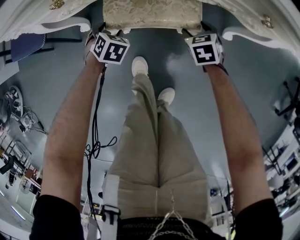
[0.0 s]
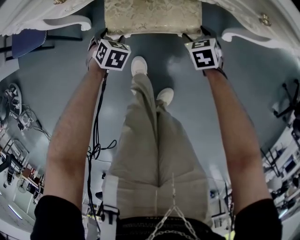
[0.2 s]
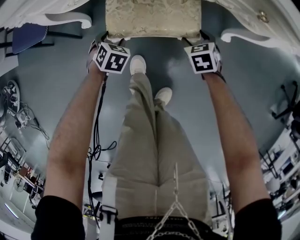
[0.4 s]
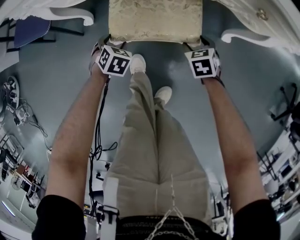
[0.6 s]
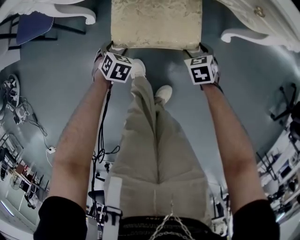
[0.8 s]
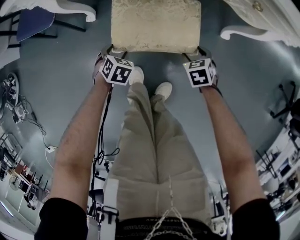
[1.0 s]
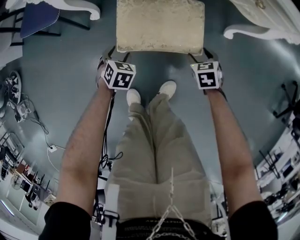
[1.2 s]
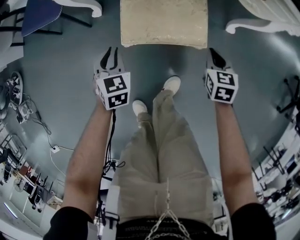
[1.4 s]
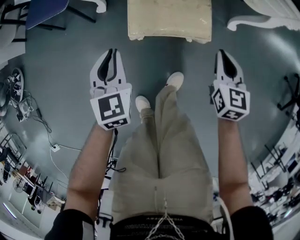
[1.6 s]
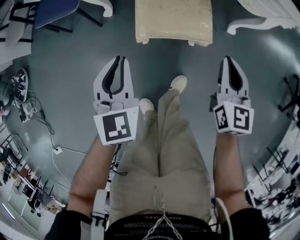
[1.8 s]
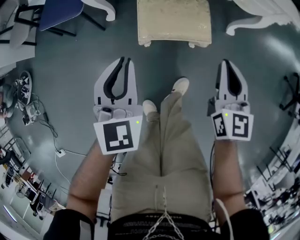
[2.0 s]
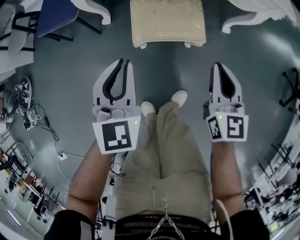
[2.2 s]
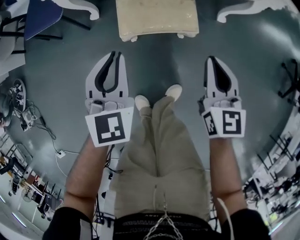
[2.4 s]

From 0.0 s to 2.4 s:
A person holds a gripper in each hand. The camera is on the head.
From 0.0 s to 1.2 s: Both grippers travel together backward, roughly 20 cm.
From 1.2 s to 2.4 s: The two grippers go roughly 30 cm upward. The left gripper tilts its fingers roughly 40 degrees upward, and closes its fingers, while the right gripper tilts its fingers about 40 degrees upward, and closes up.

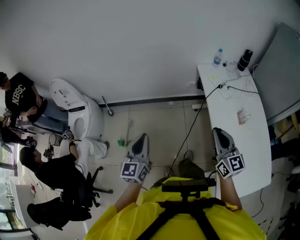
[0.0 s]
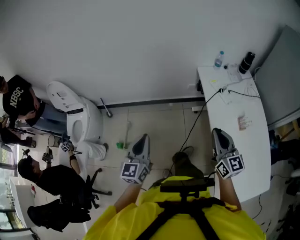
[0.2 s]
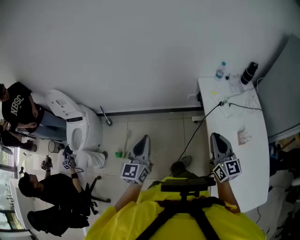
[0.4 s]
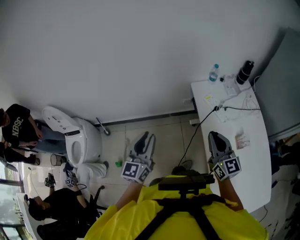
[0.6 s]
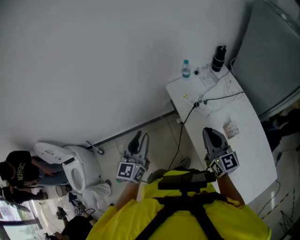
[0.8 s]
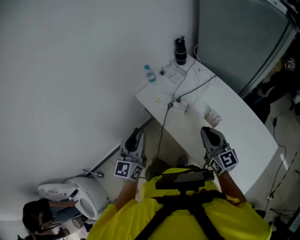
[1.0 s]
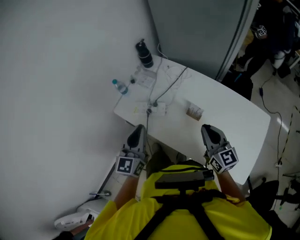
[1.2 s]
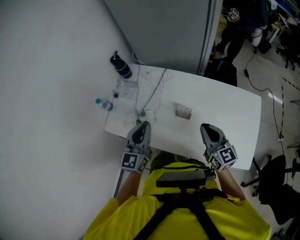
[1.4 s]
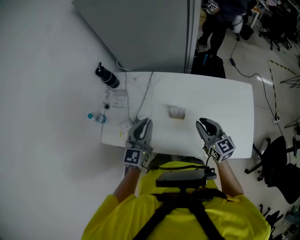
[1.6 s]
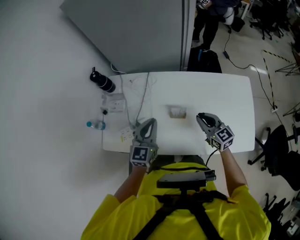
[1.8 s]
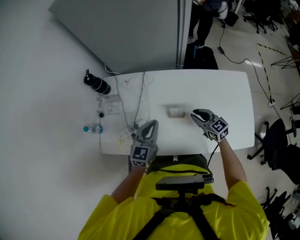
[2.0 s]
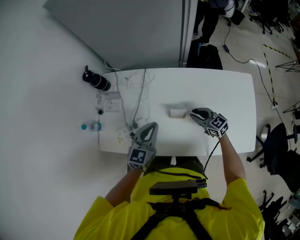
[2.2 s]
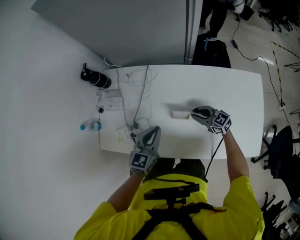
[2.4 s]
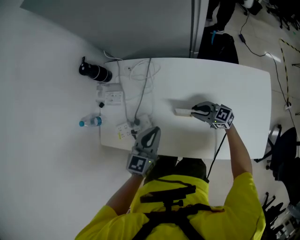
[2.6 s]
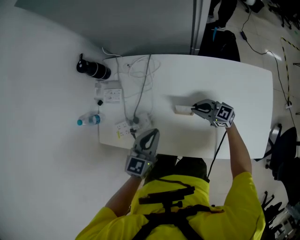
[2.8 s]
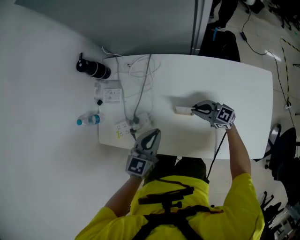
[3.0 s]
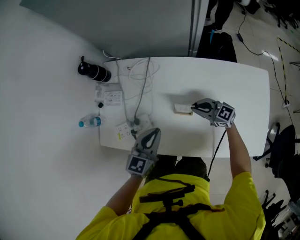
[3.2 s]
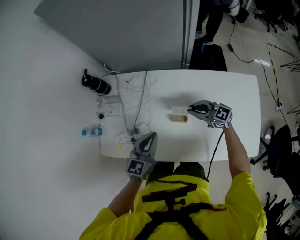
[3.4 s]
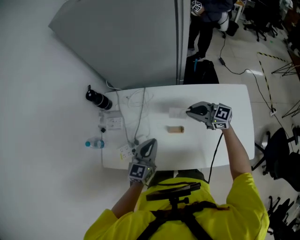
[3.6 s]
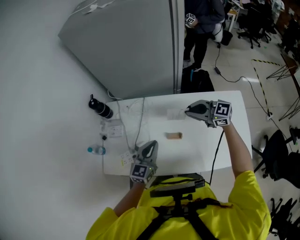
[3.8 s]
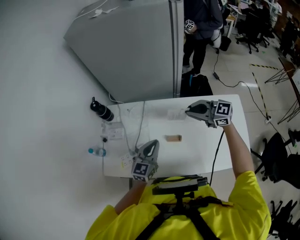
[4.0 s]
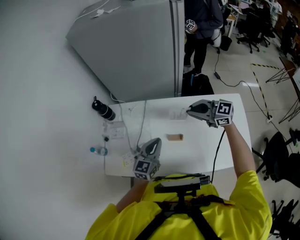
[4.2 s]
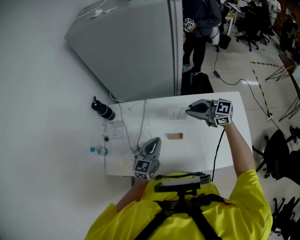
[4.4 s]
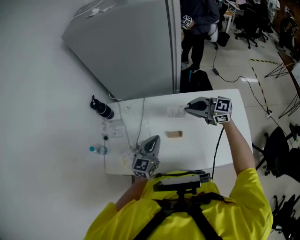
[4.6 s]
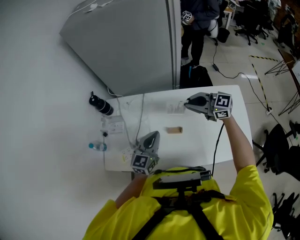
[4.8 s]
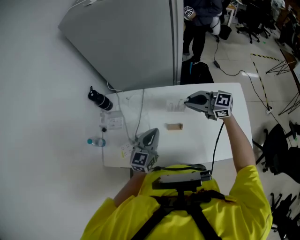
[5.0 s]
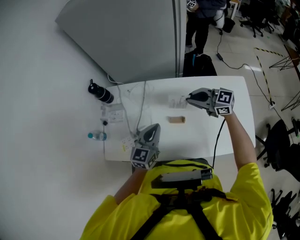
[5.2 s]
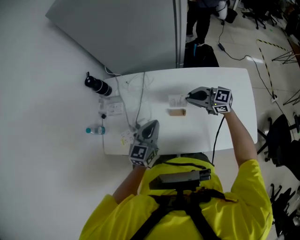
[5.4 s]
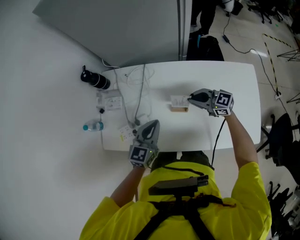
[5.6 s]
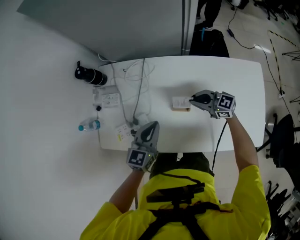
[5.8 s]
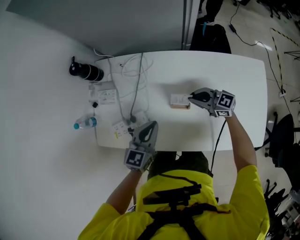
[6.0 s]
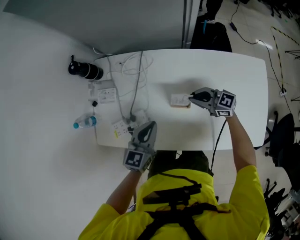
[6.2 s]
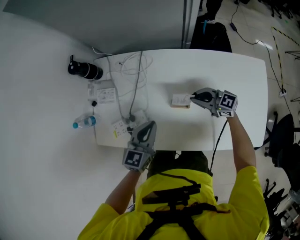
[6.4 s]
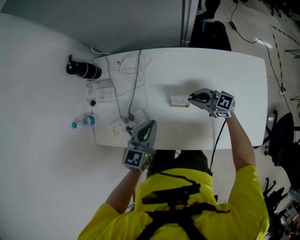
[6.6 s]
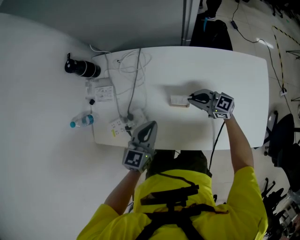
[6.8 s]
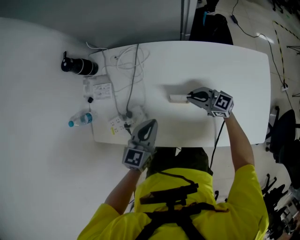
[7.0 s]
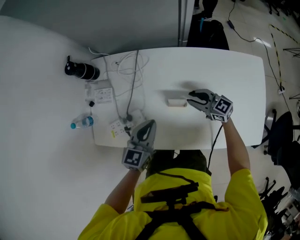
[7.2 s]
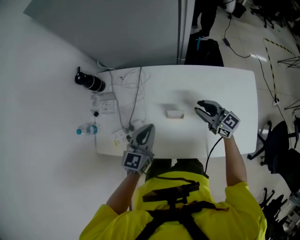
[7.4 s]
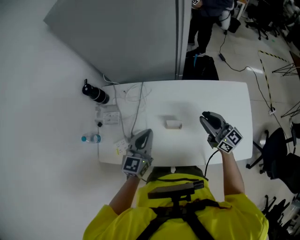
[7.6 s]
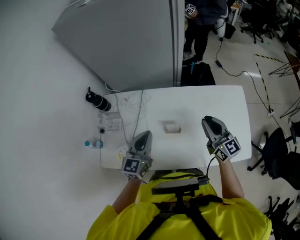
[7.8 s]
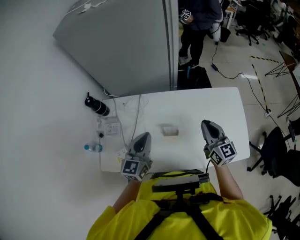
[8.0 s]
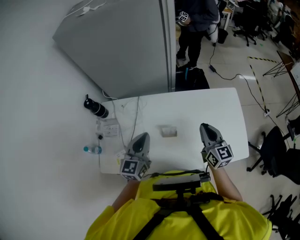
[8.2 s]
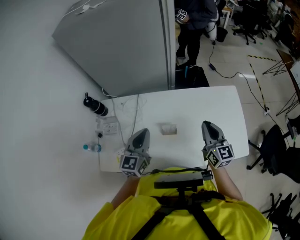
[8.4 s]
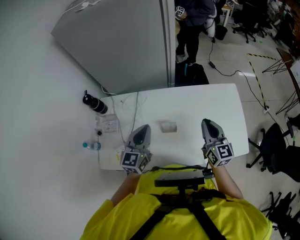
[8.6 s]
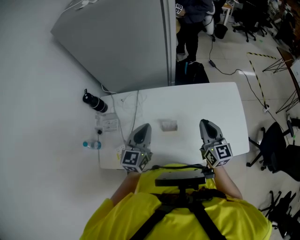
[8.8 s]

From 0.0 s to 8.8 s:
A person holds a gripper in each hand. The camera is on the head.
From 0.0 s to 1.4 s: The right gripper changes place by about 35 cm, and rotates approximately 60 degrees. Meanwhile the left gripper shifts by about 60 cm, swivels approximately 70 degrees, and opens, then closes again.
From 1.4 s to 3.0 s: The right gripper shifts roughly 25 cm downward and forward, and turns by some 40 degrees. Meanwhile the left gripper moves downward and forward, approximately 15 cm, and turns by some 30 degrees.
From 3.0 s to 4.4 s: The right gripper moves upward, roughly 30 cm. Meanwhile the left gripper travels upward by some 10 cm.
From 4.4 s to 5.8 s: The left gripper goes some 5 cm downward. Meanwhile the right gripper goes approximately 20 cm downward.
From 5.8 s to 7.4 s: The right gripper is displaced to the right and upward by roughly 10 cm, changes its angle by approximately 20 degrees, and opens up.
From 7.4 s to 8.8 s: The left gripper travels upward by roughly 10 cm. Meanwhile the right gripper heads upward and backward, covering roughly 15 cm, turns by roughly 40 degrees, and closes.

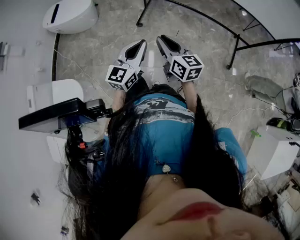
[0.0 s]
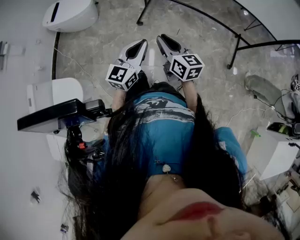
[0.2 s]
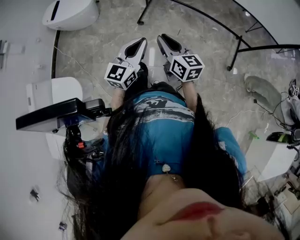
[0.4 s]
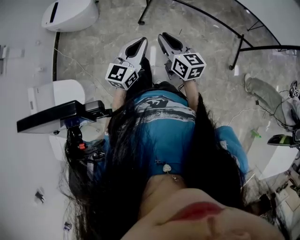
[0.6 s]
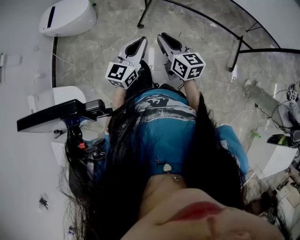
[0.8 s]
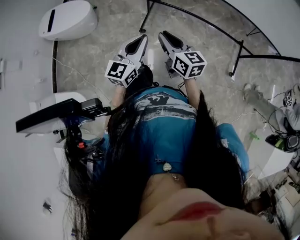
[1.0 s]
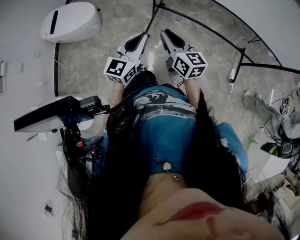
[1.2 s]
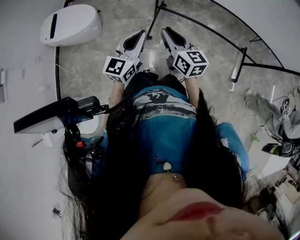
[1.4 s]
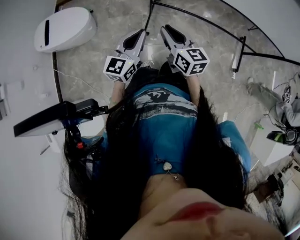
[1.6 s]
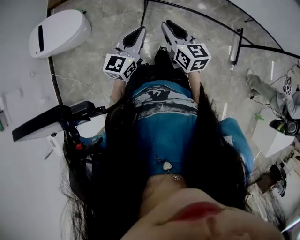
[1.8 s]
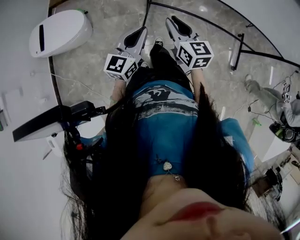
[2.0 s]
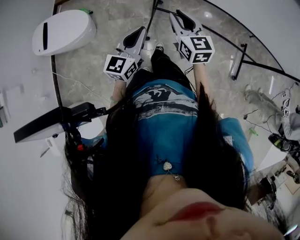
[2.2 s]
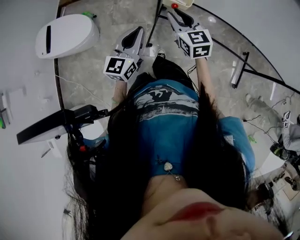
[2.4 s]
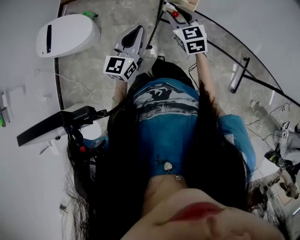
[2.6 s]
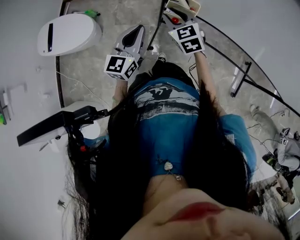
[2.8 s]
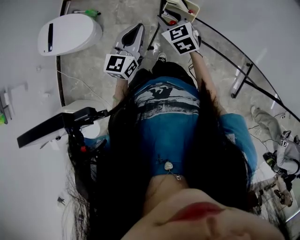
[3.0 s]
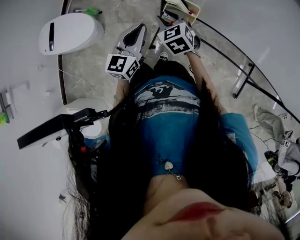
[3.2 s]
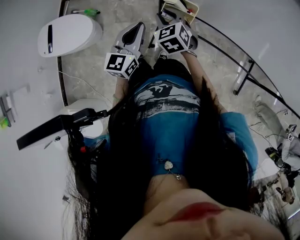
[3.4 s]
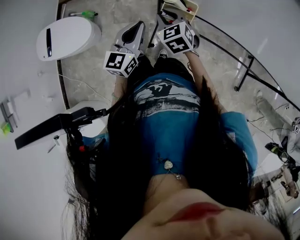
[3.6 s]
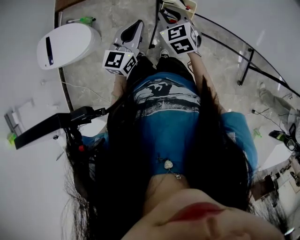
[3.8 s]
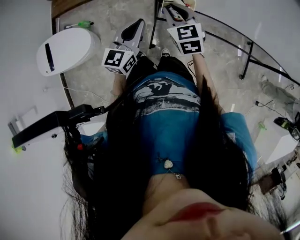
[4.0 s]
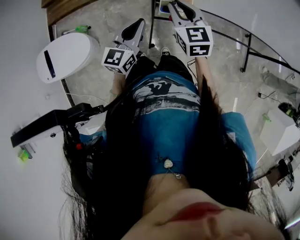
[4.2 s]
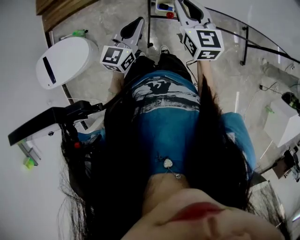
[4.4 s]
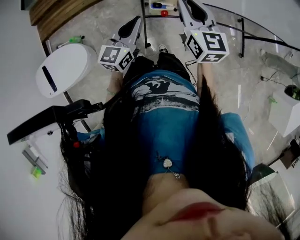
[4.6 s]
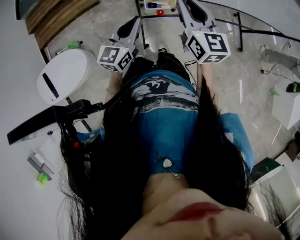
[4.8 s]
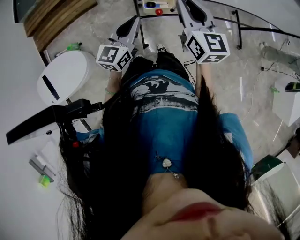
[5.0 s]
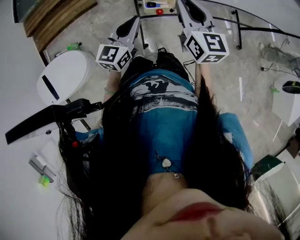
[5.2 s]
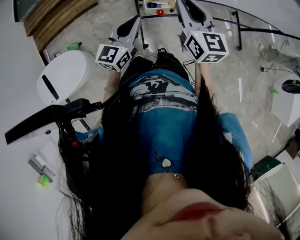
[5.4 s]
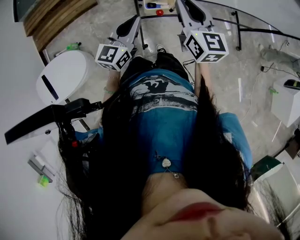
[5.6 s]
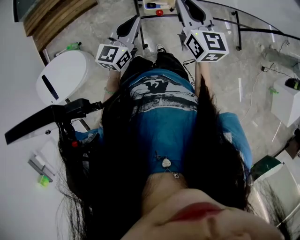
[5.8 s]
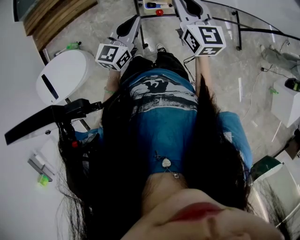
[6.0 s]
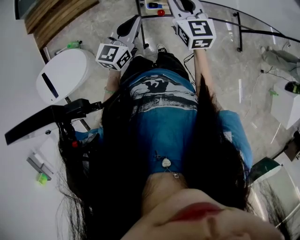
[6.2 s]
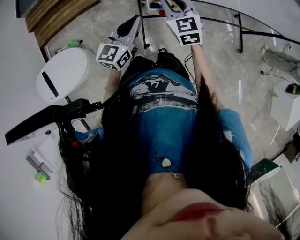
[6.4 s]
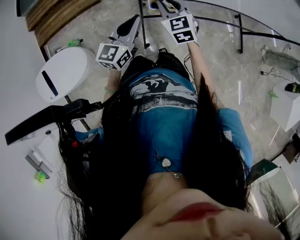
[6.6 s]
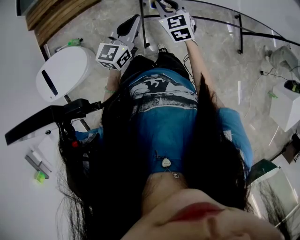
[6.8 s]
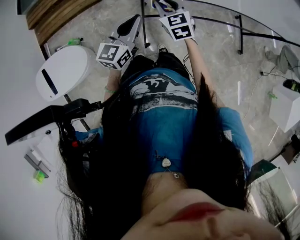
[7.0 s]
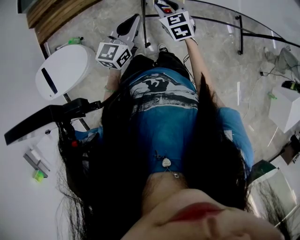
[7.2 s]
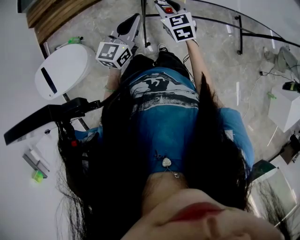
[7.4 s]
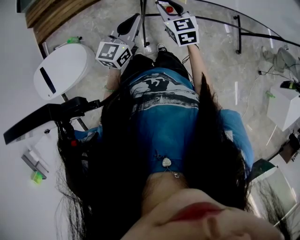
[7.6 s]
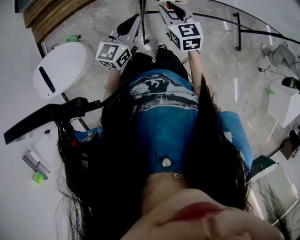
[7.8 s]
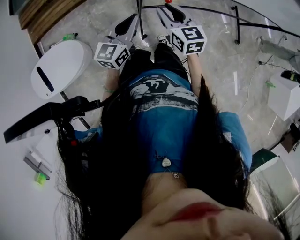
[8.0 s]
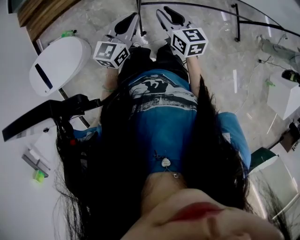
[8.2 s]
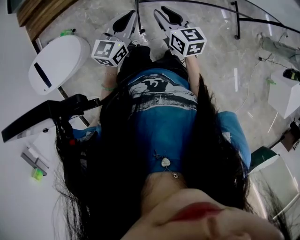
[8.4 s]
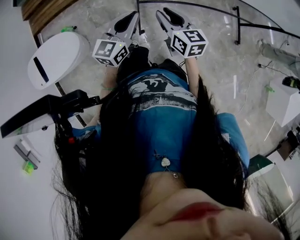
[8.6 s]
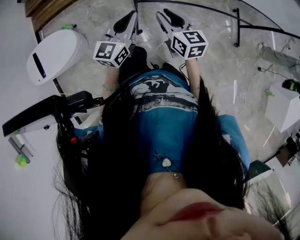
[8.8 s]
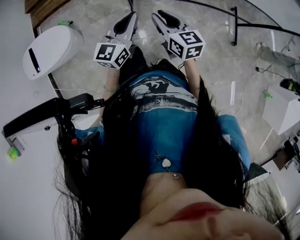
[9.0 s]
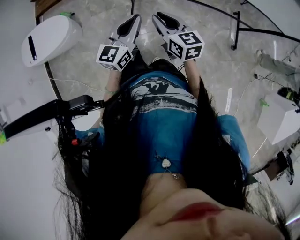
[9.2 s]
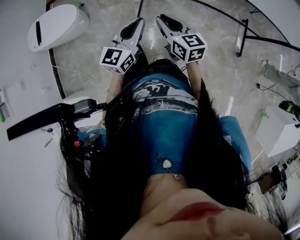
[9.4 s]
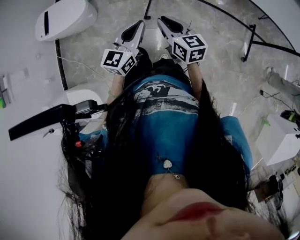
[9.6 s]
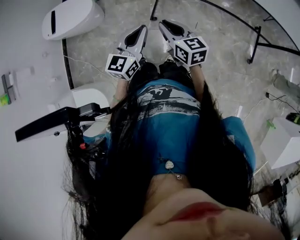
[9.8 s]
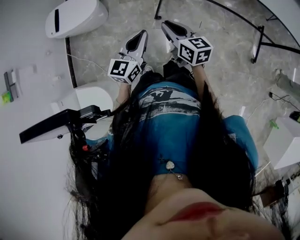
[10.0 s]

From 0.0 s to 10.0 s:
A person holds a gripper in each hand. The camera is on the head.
From 0.0 s to 1.4 s: Both grippers are carried forward and to the left, about 40 cm.
From 1.4 s to 2.8 s: Both grippers move forward, some 30 cm. The right gripper swivels some 40 degrees.
From 2.8 s to 4.2 s: The left gripper heads forward, covering approximately 5 cm. The right gripper moves upward, some 5 cm, and changes its angle by about 30 degrees.
From 4.2 s to 5.8 s: The right gripper goes about 15 cm to the right, upward and backward, and rotates approximately 20 degrees; the left gripper moves to the right, about 5 cm.
From 5.8 s to 7.2 s: The right gripper is displaced downward and to the left by roughly 20 cm, and rotates roughly 30 degrees.
From 7.2 s to 8.6 s: The right gripper goes some 10 cm backward, and swivels approximately 30 degrees.
From 8.6 s to 10.0 s: The left gripper shifts by roughly 40 cm, and changes its angle by approximately 20 degrees. The right gripper shifts by roughly 35 cm, and changes its angle by some 30 degrees.

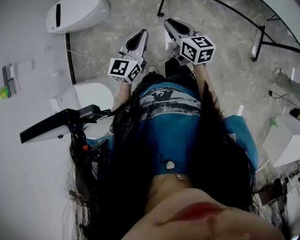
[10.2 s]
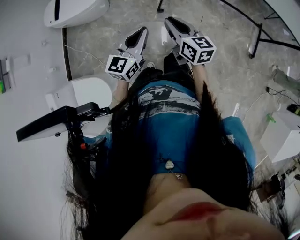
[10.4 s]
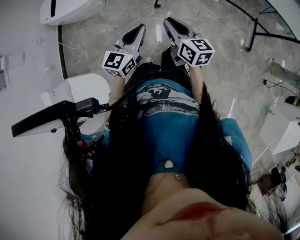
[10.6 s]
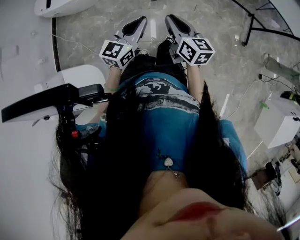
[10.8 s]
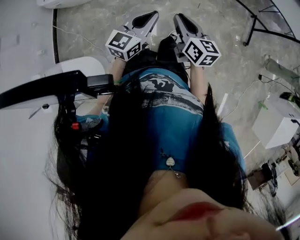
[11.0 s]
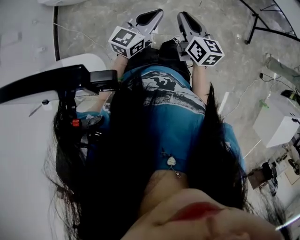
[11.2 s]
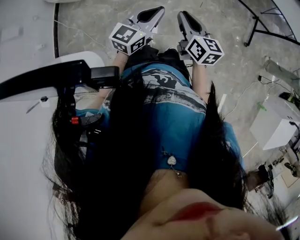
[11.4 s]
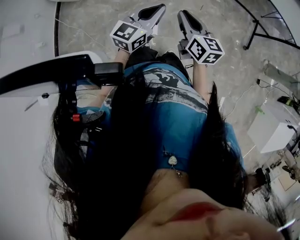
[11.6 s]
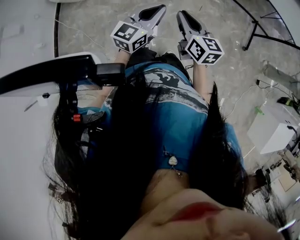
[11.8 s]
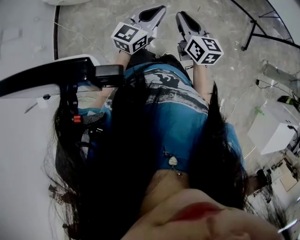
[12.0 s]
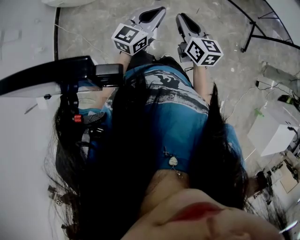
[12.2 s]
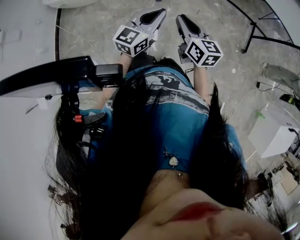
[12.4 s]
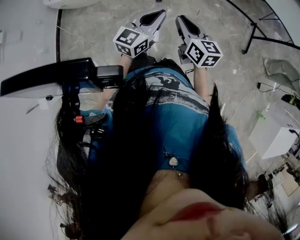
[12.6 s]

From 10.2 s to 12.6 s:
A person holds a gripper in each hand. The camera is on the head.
From 10.2 s to 11.4 s: Both grippers move backward and to the left, approximately 25 cm.
From 11.4 s to 12.6 s: There are only small adjustments of the grippers.
